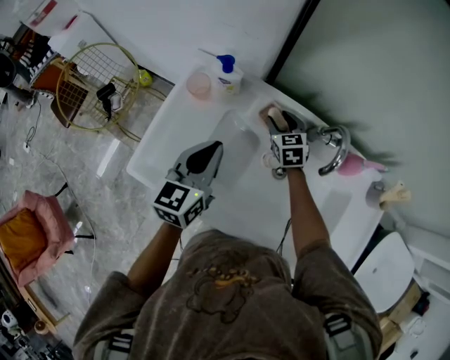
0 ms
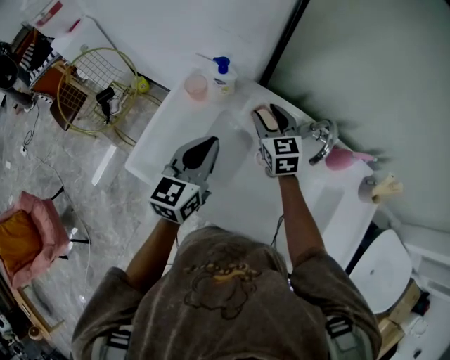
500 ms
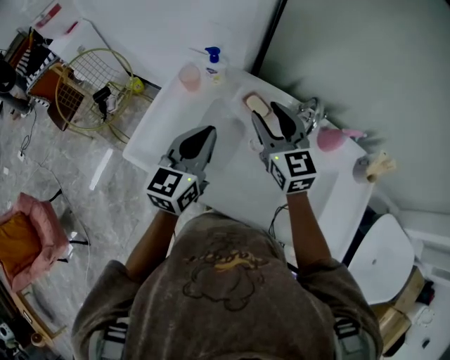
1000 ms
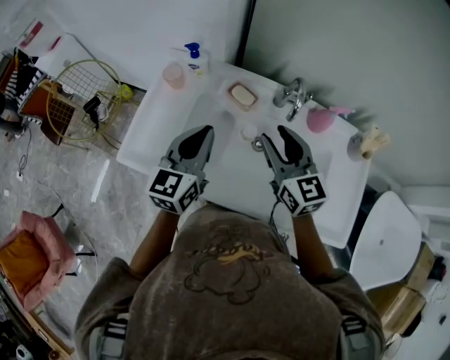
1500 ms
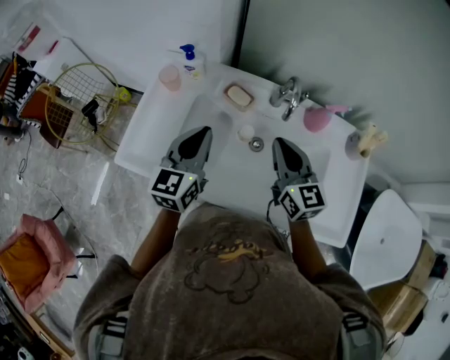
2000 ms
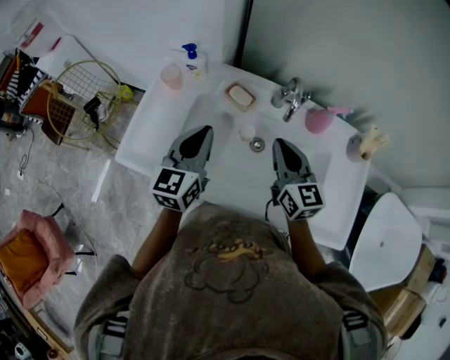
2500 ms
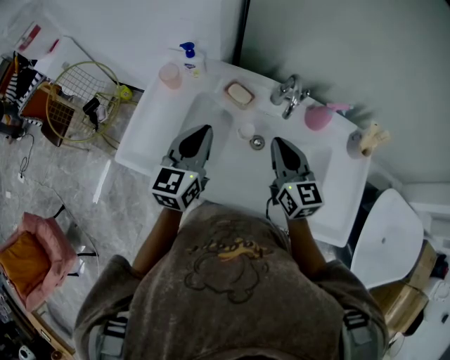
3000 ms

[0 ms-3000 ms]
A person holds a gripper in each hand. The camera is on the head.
0 ms to 1500 ms: The right gripper heads backward and upward, covering roughly 30 cm, and changes its angle by some 30 degrees. The left gripper goes roughly 10 cm backward, upward and to the right.
1500 ms to 3000 ms: The right gripper ends up roughly 5 cm from where it was, and closes.

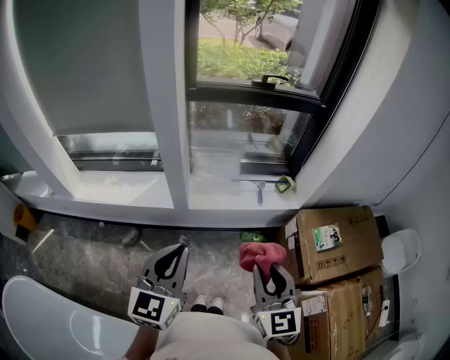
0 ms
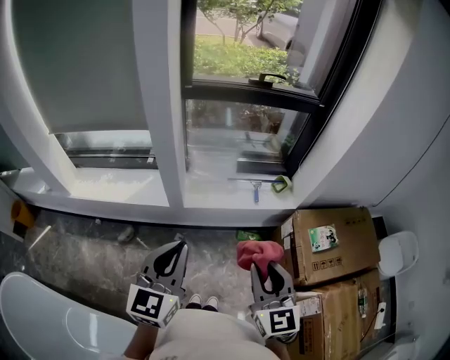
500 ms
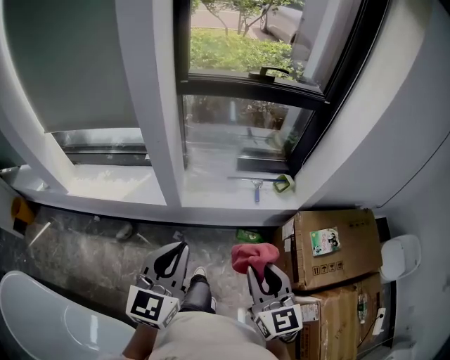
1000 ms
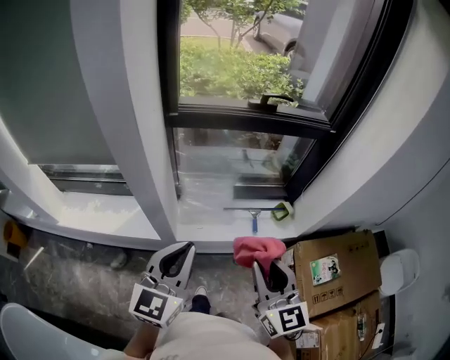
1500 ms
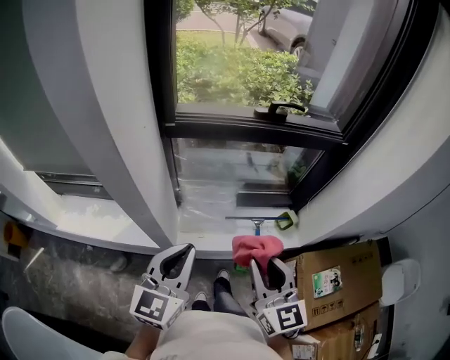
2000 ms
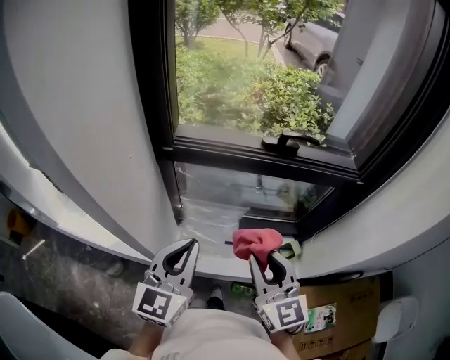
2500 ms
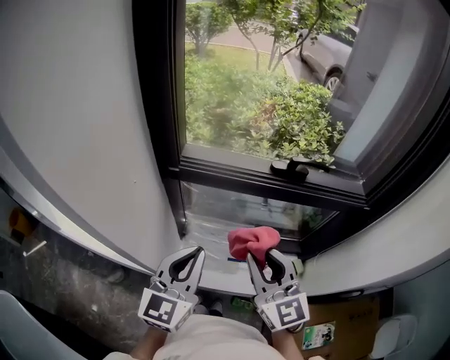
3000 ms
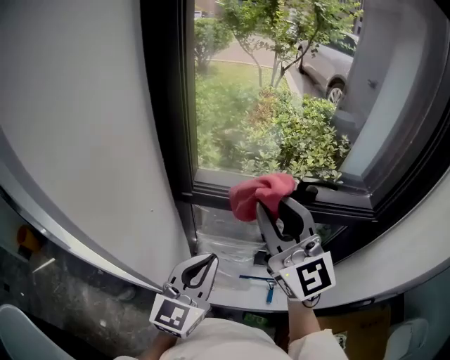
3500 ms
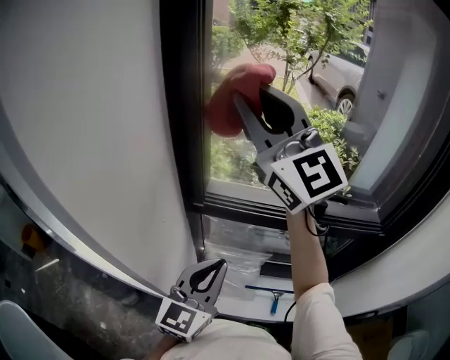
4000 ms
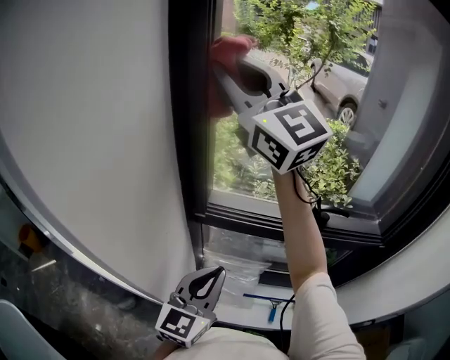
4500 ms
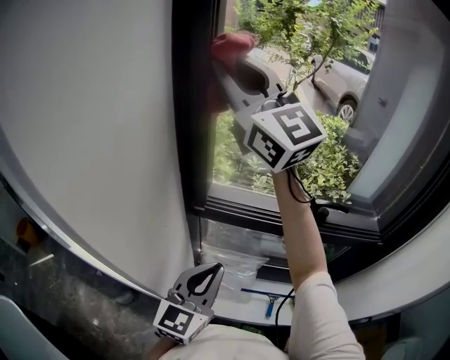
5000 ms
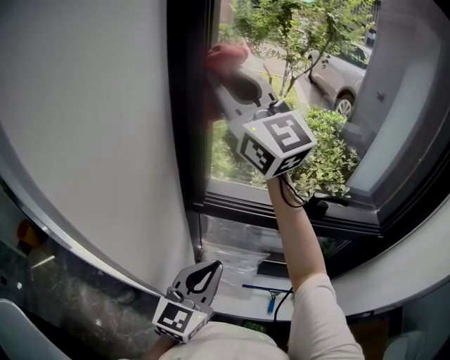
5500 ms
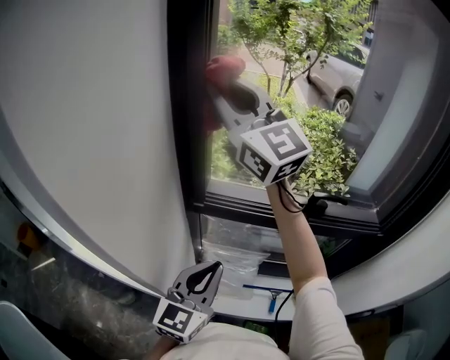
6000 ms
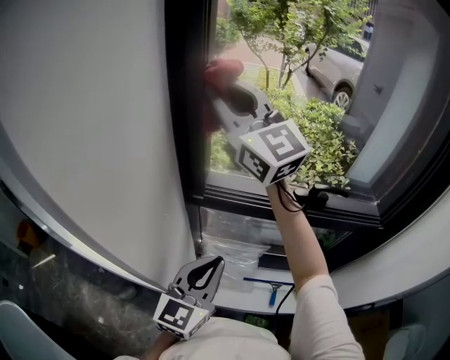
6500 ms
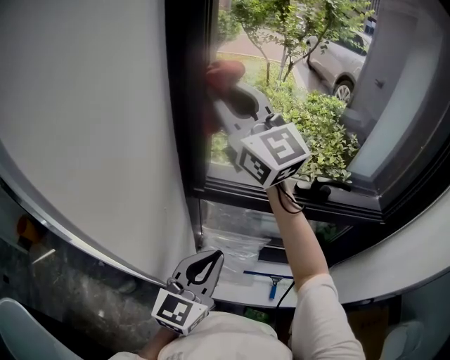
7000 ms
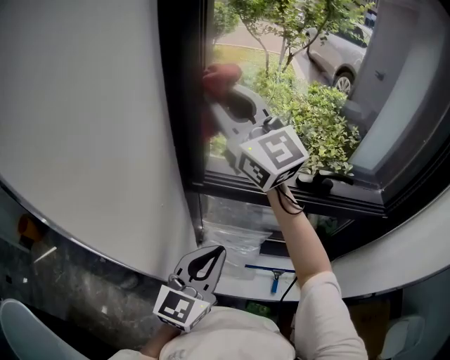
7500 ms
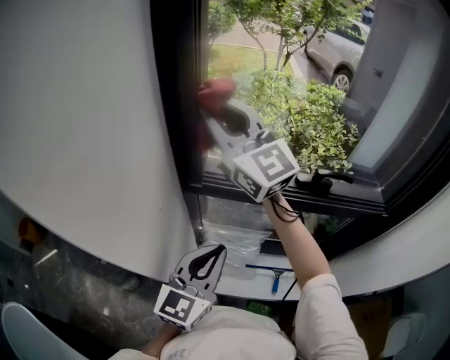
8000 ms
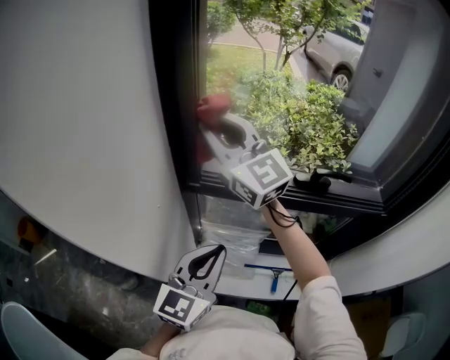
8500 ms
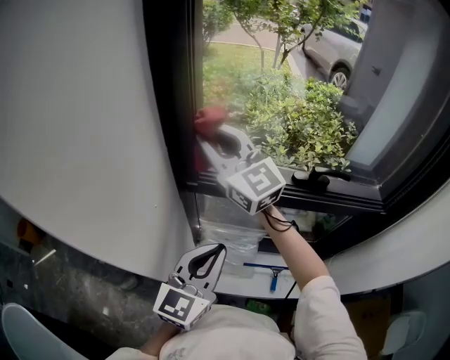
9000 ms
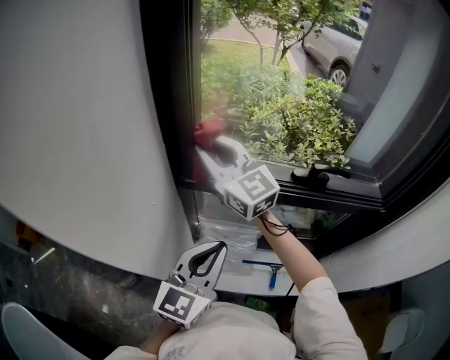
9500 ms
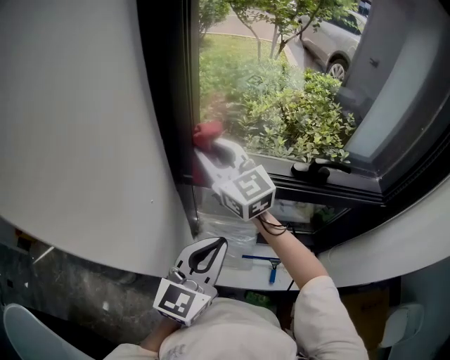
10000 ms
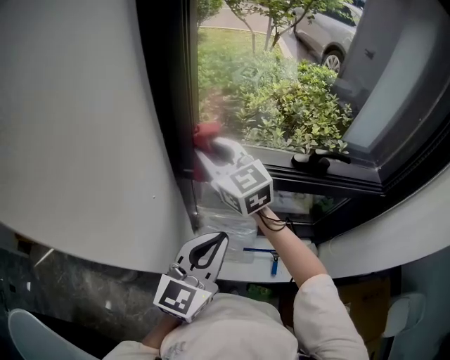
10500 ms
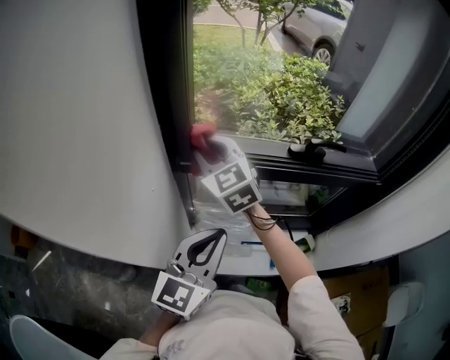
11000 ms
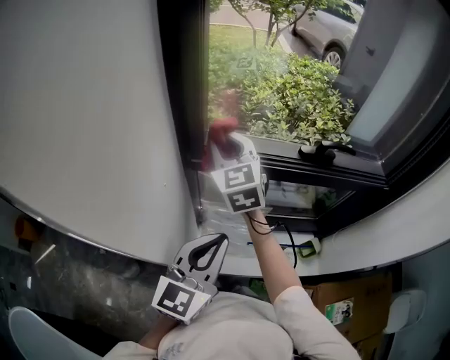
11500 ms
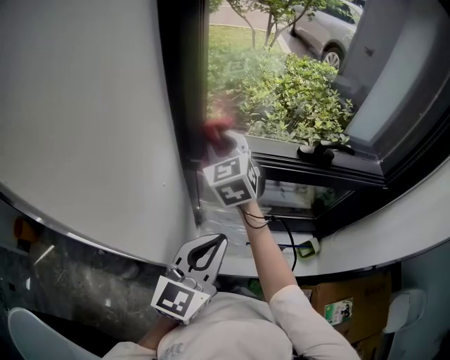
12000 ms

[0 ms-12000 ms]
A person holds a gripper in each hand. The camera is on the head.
0 ms to 2000 ms: Both grippers move forward, about 30 cm.
2000 ms to 4000 ms: The right gripper moves forward and upward, some 50 cm, and tilts its fingers about 30 degrees upward; the left gripper shifts approximately 20 cm forward.
4000 ms to 6000 ms: The right gripper is displaced forward by about 5 cm.
6000 ms to 8000 ms: The right gripper is displaced downward by about 10 cm.
8000 ms to 10000 ms: The right gripper goes some 15 cm downward.
10000 ms to 12000 ms: The right gripper goes roughly 5 cm downward, and rotates approximately 30 degrees.

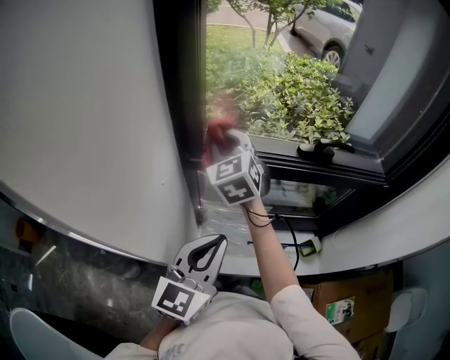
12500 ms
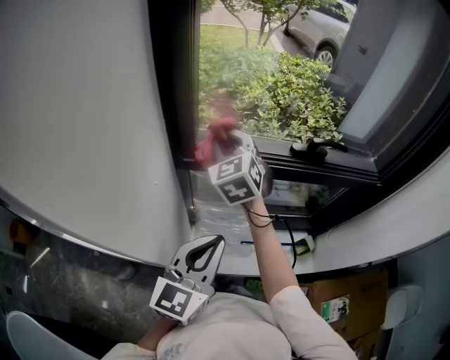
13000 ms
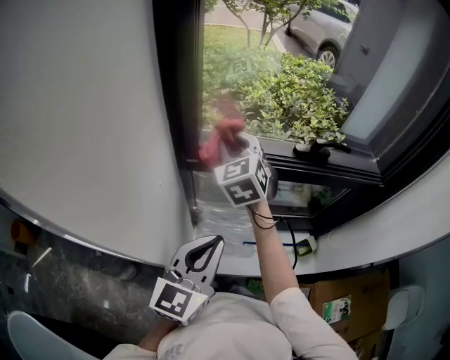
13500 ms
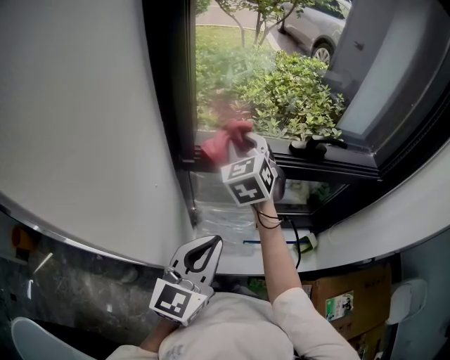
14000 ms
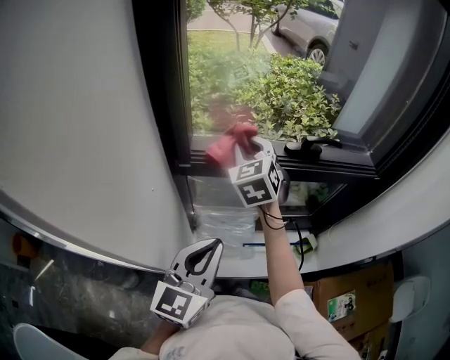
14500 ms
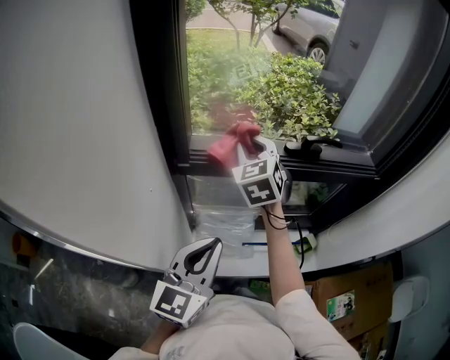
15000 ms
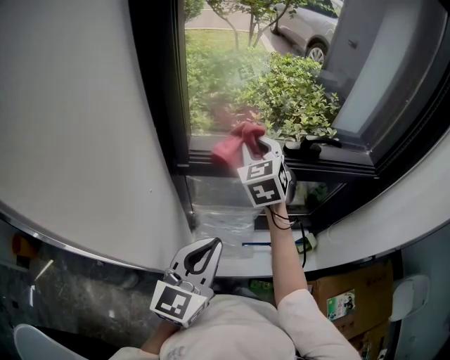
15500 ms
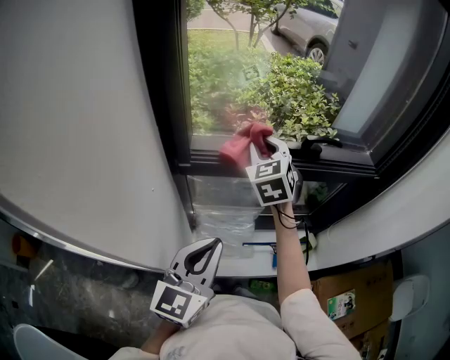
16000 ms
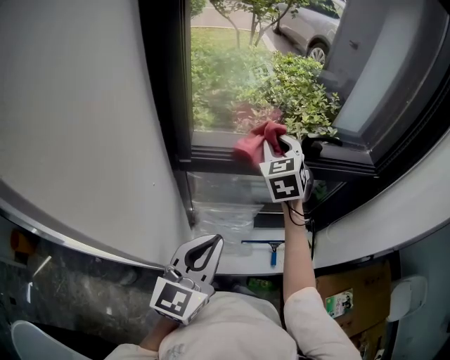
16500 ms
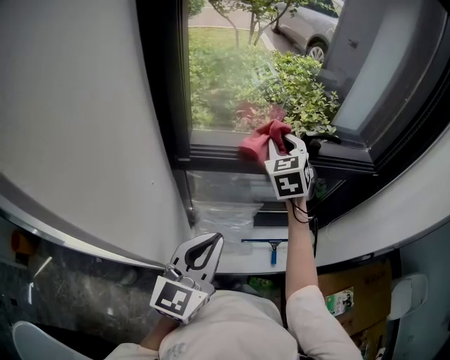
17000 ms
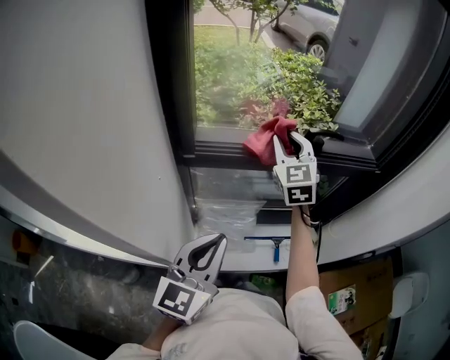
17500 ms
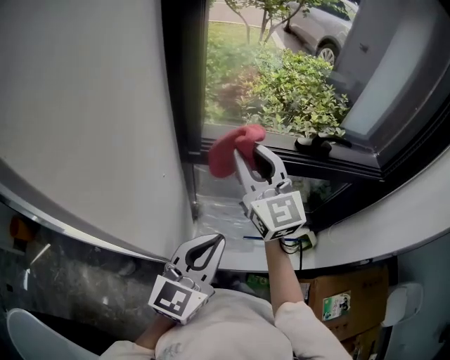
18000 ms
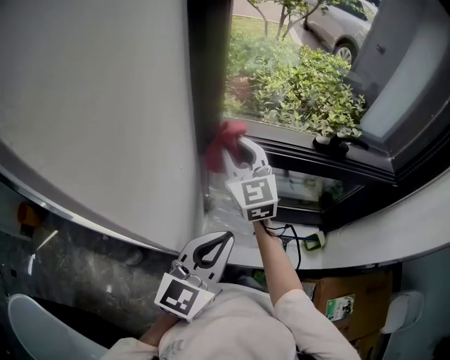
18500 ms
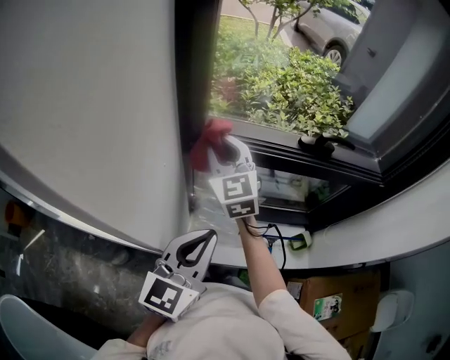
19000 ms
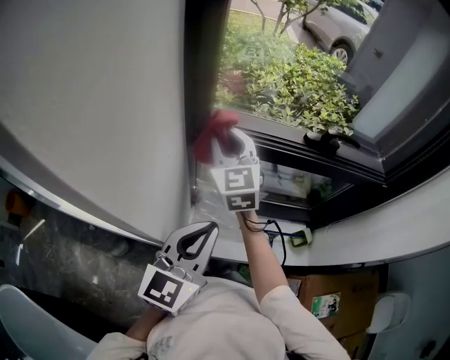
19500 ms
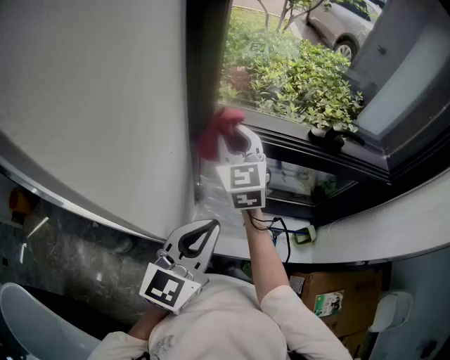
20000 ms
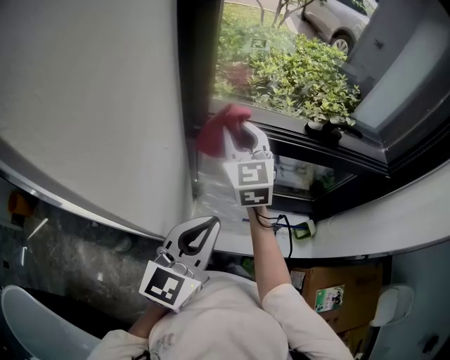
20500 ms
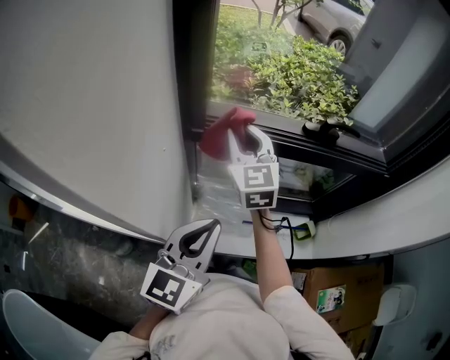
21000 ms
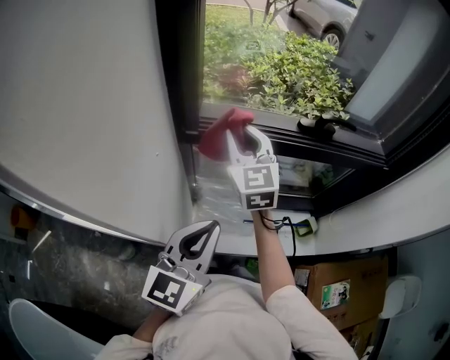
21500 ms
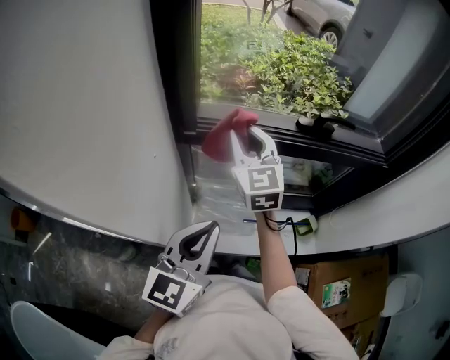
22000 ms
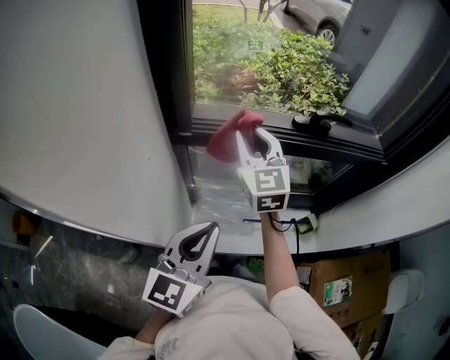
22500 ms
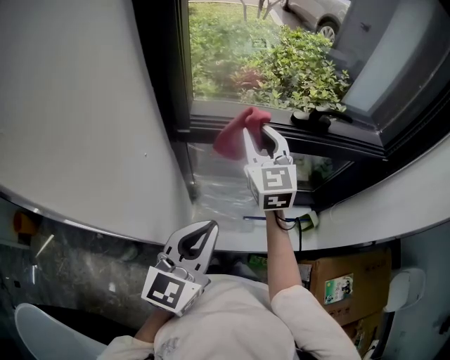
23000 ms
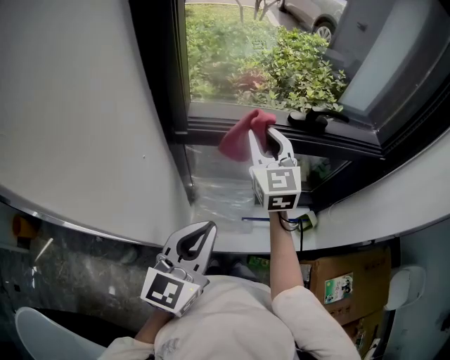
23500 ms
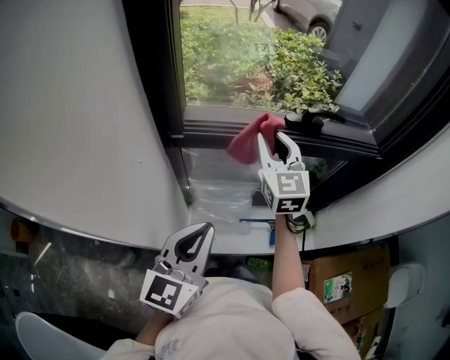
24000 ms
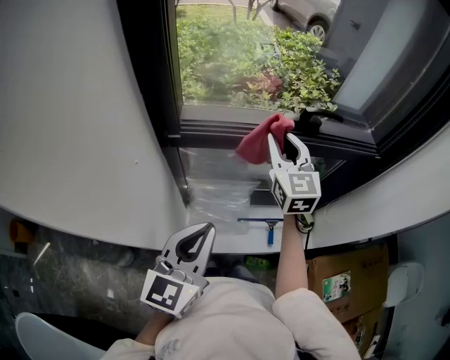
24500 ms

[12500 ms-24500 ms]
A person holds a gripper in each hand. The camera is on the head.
12500 ms to 14500 ms: The right gripper heads to the right, covering roughly 10 cm.
14500 ms to 16500 ms: The right gripper shifts approximately 10 cm to the right.
16500 ms to 18500 ms: The right gripper shifts about 20 cm to the left and backward, and changes its angle by some 30 degrees.
18500 ms to 20500 ms: The grippers stay close to where they were, moving slightly.
20500 ms to 22500 ms: The right gripper goes some 5 cm to the right.
22500 ms to 24500 ms: The right gripper moves to the right, roughly 10 cm.
